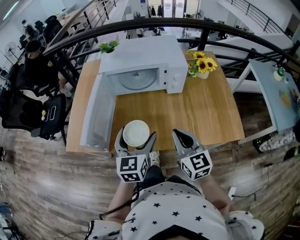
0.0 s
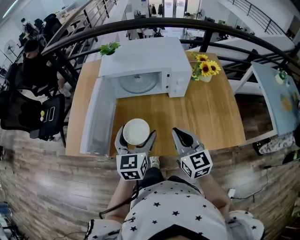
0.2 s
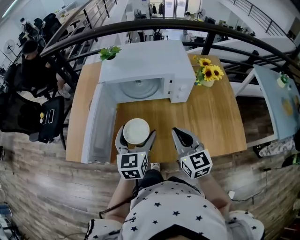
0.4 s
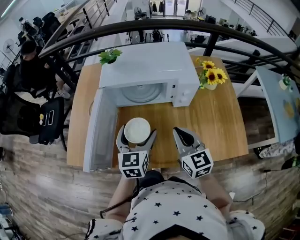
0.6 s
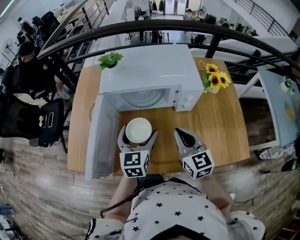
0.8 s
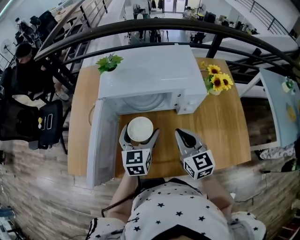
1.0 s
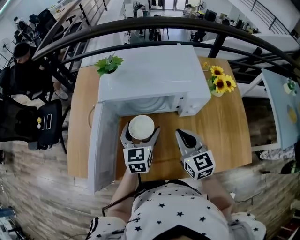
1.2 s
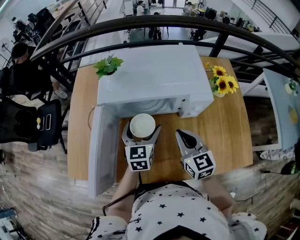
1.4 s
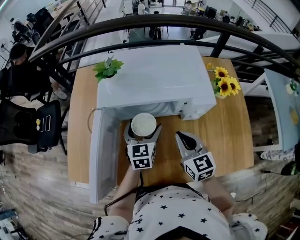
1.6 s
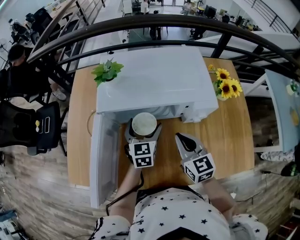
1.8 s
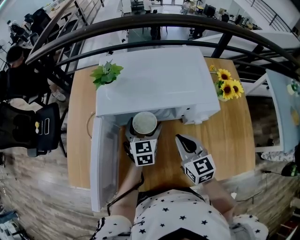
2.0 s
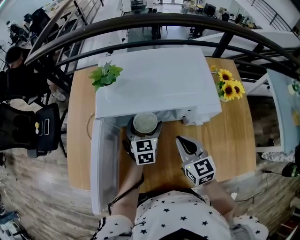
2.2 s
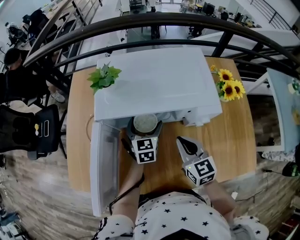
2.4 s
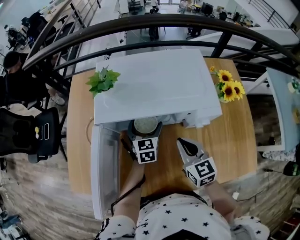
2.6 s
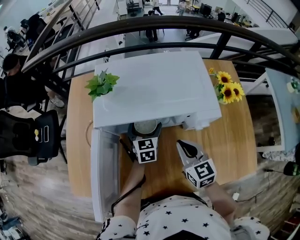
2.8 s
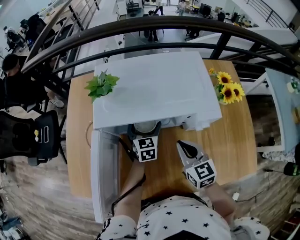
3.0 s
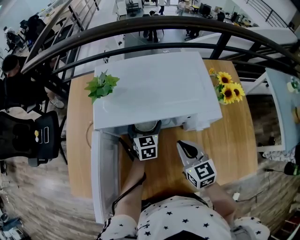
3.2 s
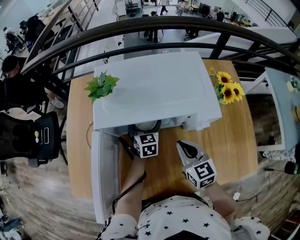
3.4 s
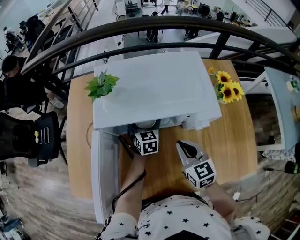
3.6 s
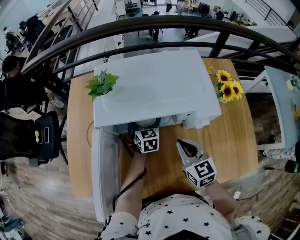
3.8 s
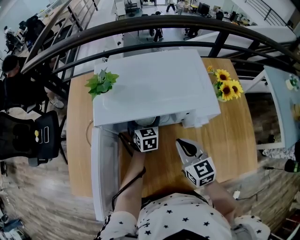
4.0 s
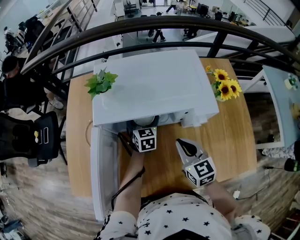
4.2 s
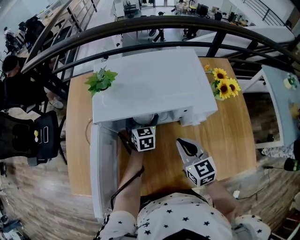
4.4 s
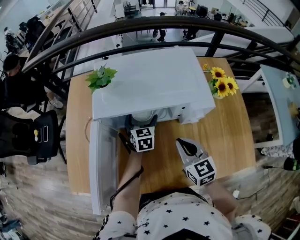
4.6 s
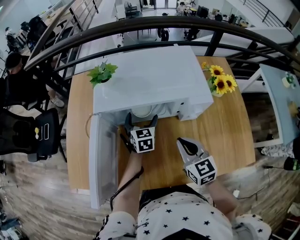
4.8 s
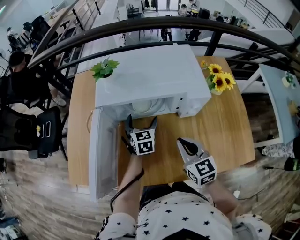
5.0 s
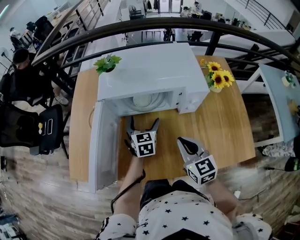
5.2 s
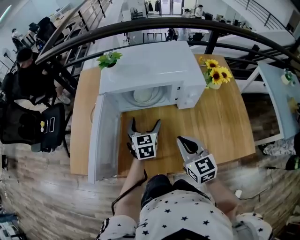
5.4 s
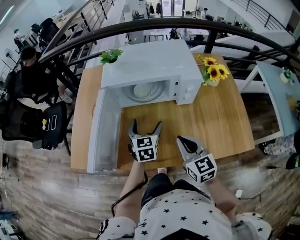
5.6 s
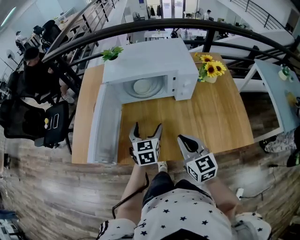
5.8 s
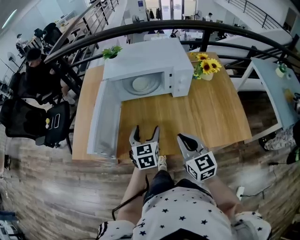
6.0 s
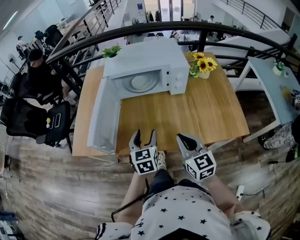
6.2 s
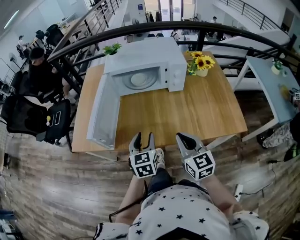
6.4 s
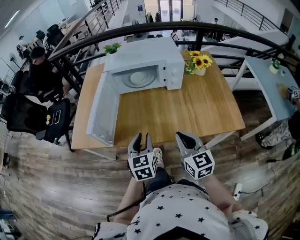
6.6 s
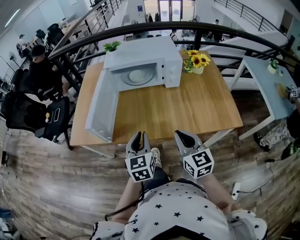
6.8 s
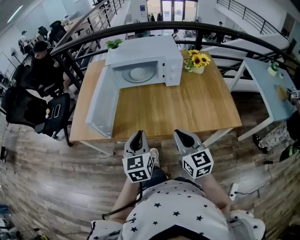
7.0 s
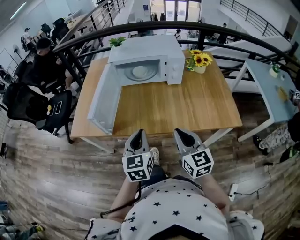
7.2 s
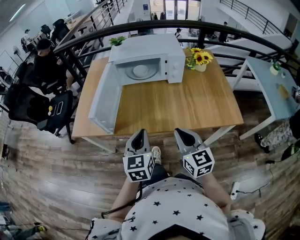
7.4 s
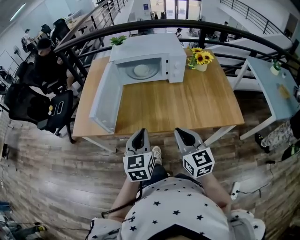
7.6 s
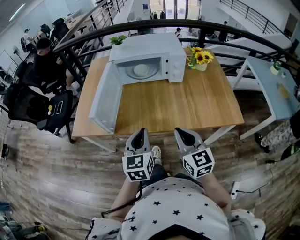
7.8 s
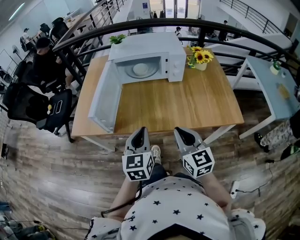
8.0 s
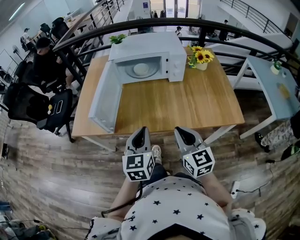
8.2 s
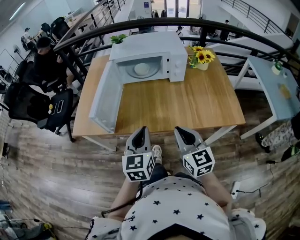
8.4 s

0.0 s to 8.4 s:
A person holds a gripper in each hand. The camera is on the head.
0.0 to 1.4 s: The two grippers go some 25 cm forward.
1.4 to 2.8 s: The left gripper travels forward and downward by some 15 cm. Meanwhile the right gripper shifts by roughly 5 cm.
2.8 to 4.2 s: The grippers make only small movements.
4.2 to 5.6 s: Both grippers move backward, approximately 20 cm.
5.6 to 7.0 s: The two grippers go some 25 cm backward. The left gripper closes.
7.0 to 8.4 s: The grippers move only a little.

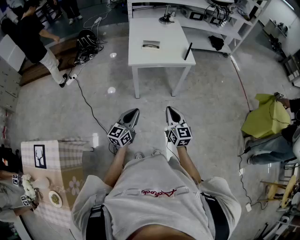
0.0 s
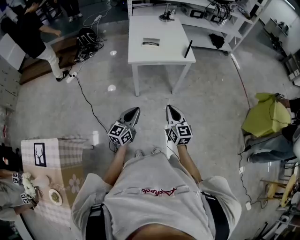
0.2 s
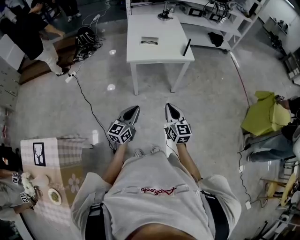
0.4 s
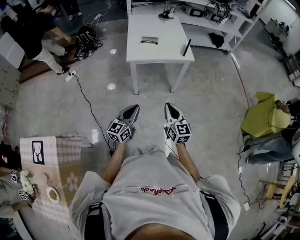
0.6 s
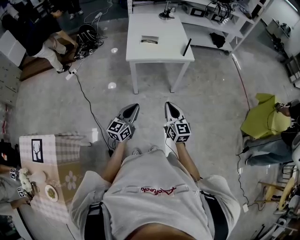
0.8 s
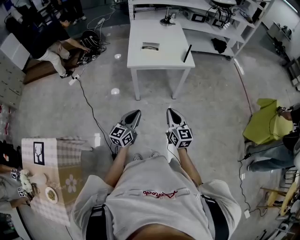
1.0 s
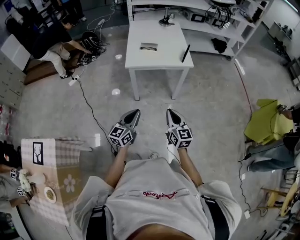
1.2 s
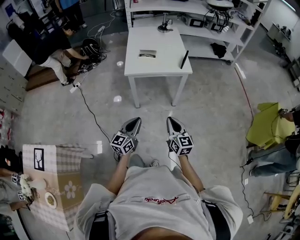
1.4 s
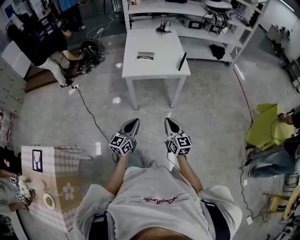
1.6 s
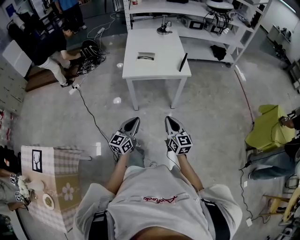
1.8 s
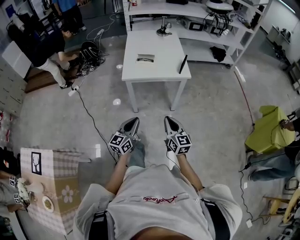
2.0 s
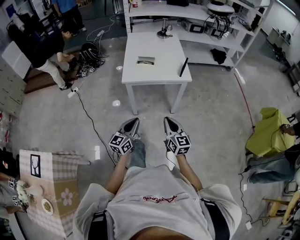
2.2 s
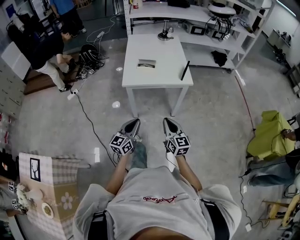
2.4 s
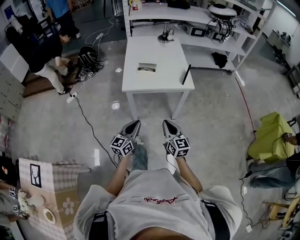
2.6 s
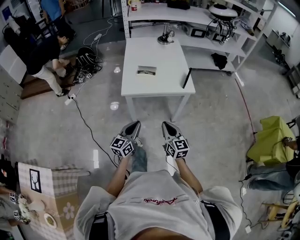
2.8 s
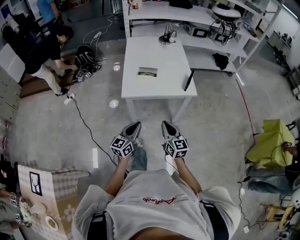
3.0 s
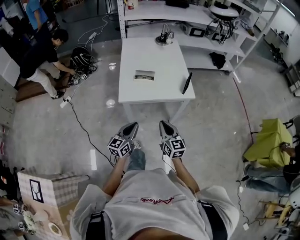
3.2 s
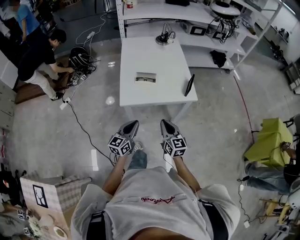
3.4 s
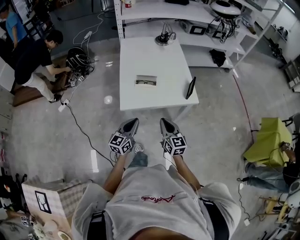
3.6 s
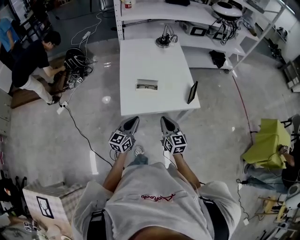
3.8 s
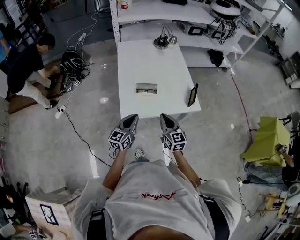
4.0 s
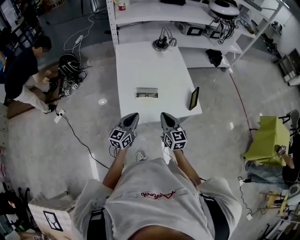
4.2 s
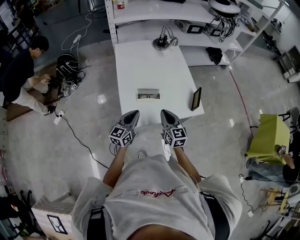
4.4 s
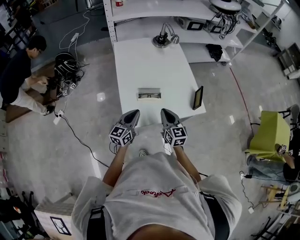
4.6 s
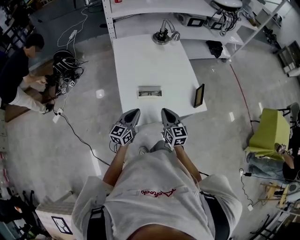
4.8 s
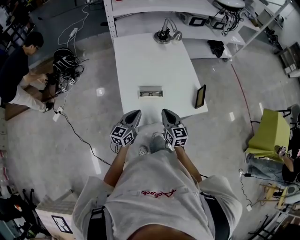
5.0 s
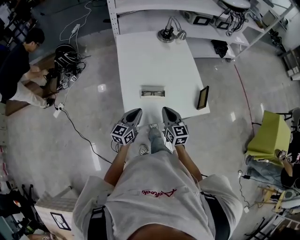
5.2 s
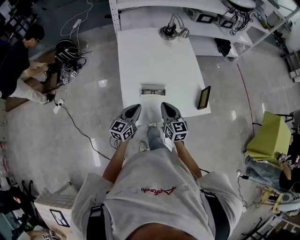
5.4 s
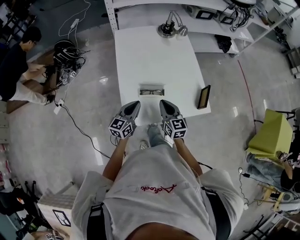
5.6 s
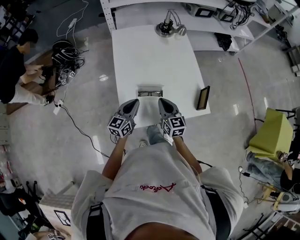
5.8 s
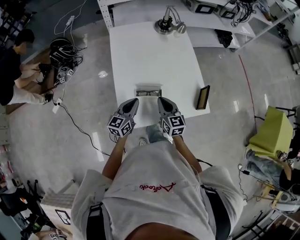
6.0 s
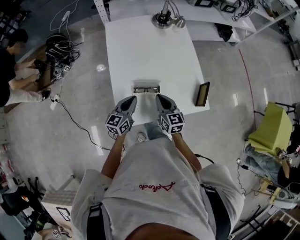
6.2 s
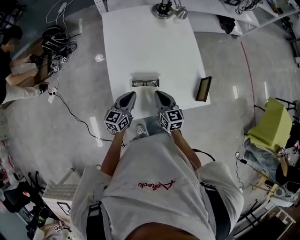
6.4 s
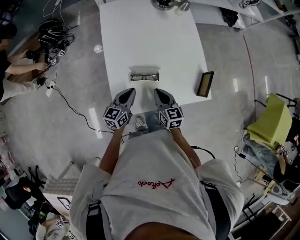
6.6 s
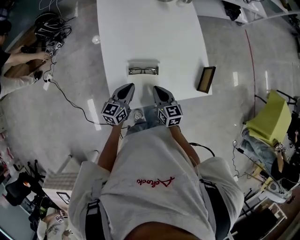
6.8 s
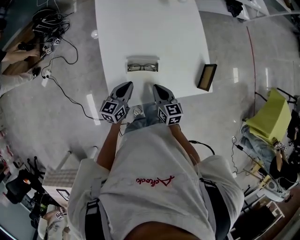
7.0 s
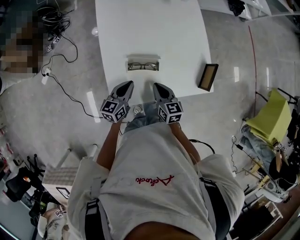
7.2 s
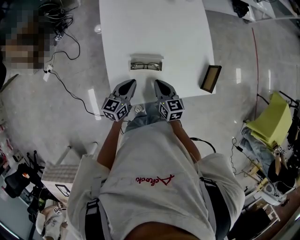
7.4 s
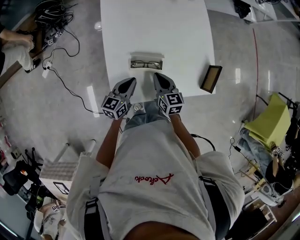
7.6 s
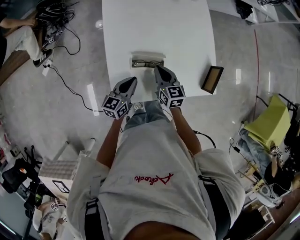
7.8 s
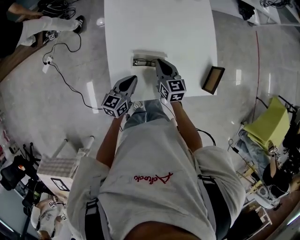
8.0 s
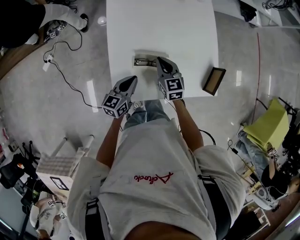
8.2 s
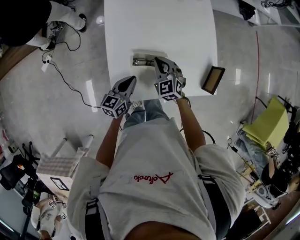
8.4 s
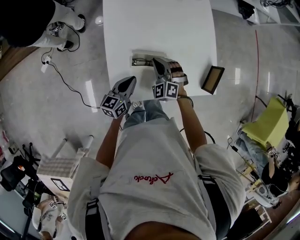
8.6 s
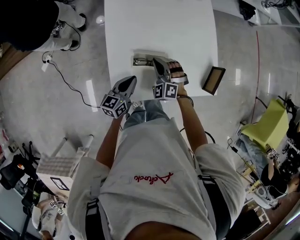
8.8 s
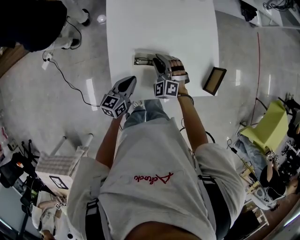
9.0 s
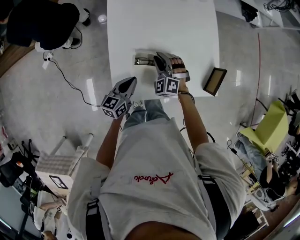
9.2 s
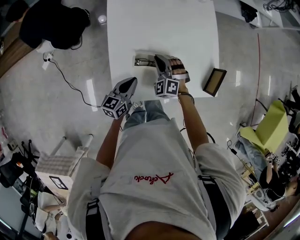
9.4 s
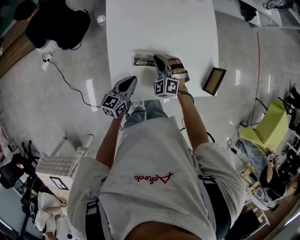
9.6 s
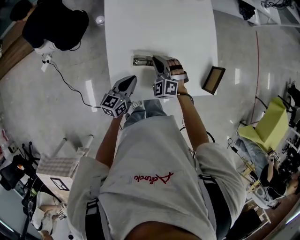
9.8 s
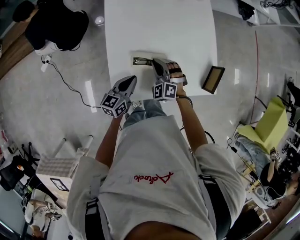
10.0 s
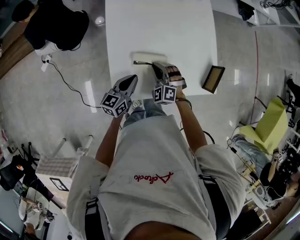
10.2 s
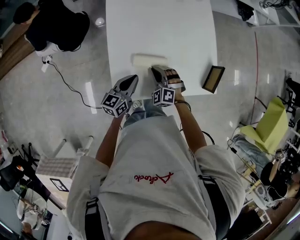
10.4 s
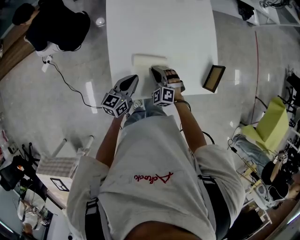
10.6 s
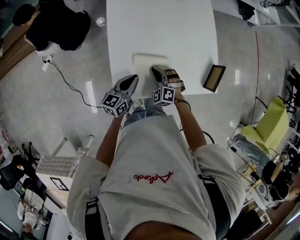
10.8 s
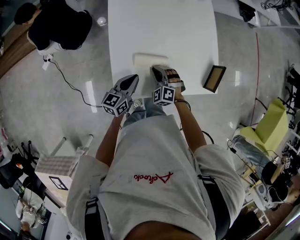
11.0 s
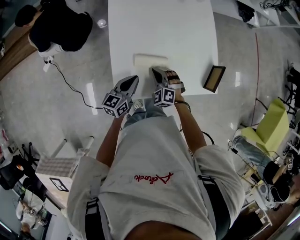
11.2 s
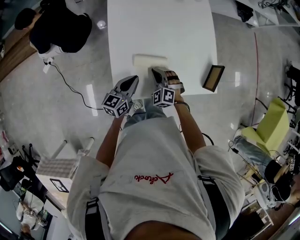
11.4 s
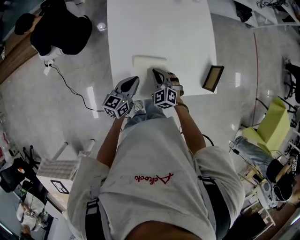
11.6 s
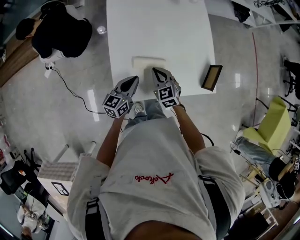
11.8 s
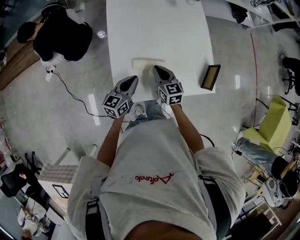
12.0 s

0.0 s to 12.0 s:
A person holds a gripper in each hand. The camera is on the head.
0.0 to 1.6 s: The grippers both shift to the right by approximately 5 cm.
1.6 to 3.0 s: Both grippers travel together forward, about 20 cm.
3.0 to 4.4 s: Both grippers move forward, roughly 25 cm.
4.4 to 6.0 s: Both grippers move forward, about 10 cm.
6.0 to 7.6 s: Both grippers travel together downward, about 10 cm.
7.6 to 9.0 s: The right gripper shifts roughly 5 cm forward, twists approximately 70 degrees counterclockwise, seen from behind, and opens up.
9.0 to 10.4 s: The right gripper is displaced backward by some 5 cm.
10.4 to 12.0 s: The right gripper moves upward, approximately 5 cm, and rolls clockwise, seen from behind, by approximately 60 degrees.

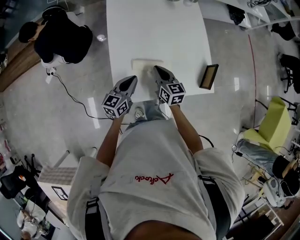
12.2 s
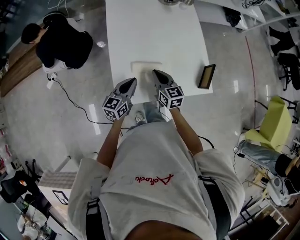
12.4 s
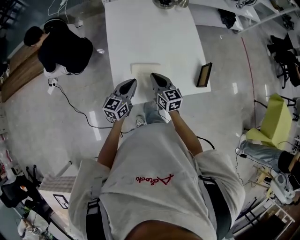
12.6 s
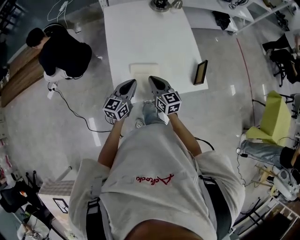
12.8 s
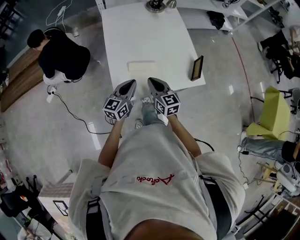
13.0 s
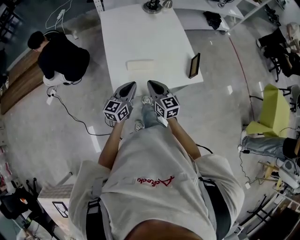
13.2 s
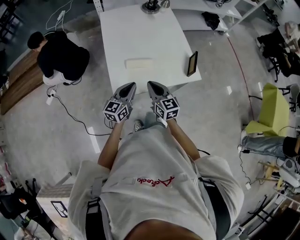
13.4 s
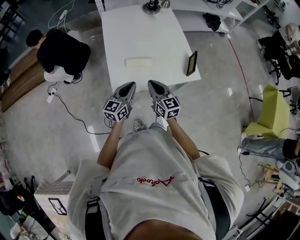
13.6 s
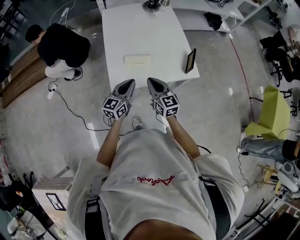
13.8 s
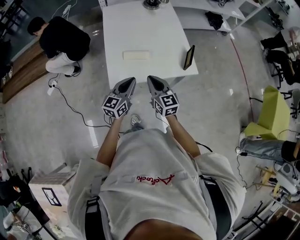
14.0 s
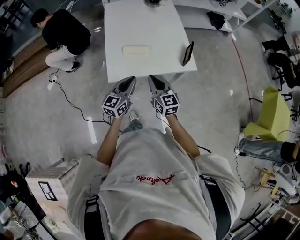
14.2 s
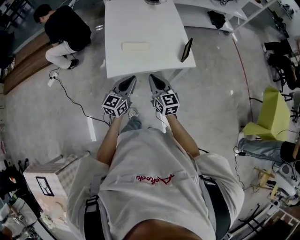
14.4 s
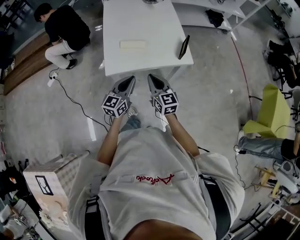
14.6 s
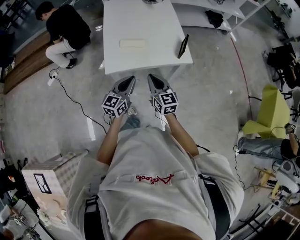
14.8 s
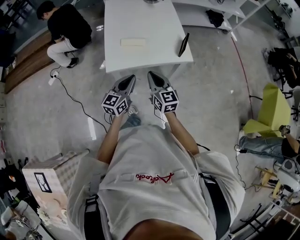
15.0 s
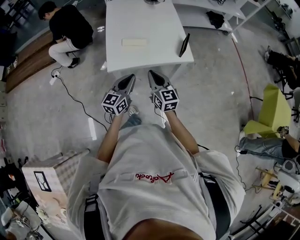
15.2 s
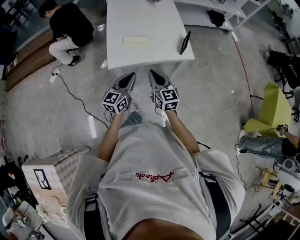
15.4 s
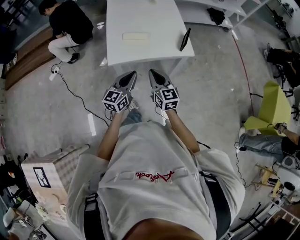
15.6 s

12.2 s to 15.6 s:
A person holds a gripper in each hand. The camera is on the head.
12.2 to 13.8 s: The grippers both shift backward and upward by roughly 15 cm.
13.8 to 15.6 s: The two grippers go approximately 10 cm backward.
